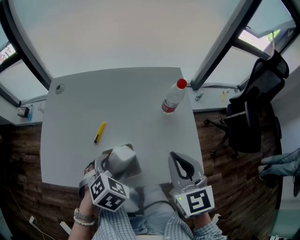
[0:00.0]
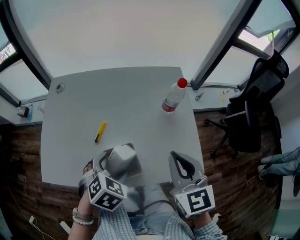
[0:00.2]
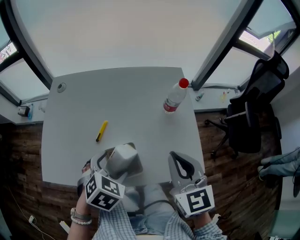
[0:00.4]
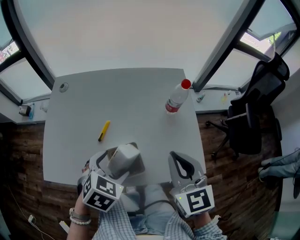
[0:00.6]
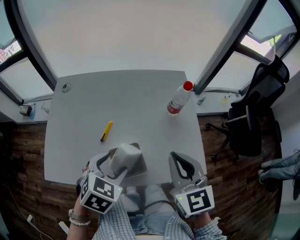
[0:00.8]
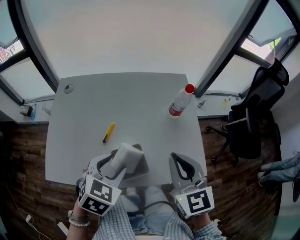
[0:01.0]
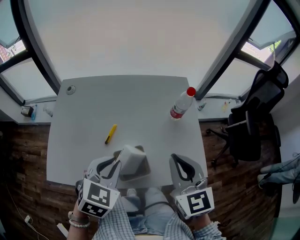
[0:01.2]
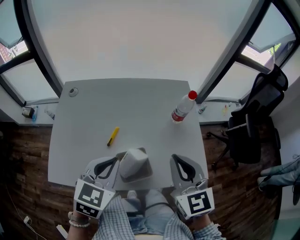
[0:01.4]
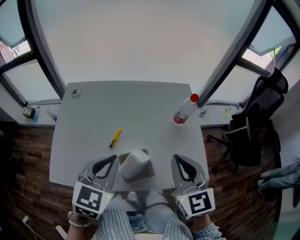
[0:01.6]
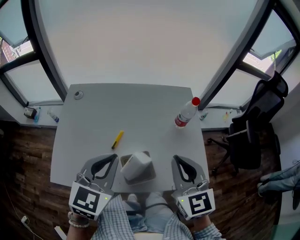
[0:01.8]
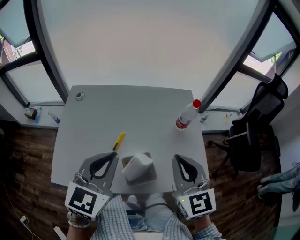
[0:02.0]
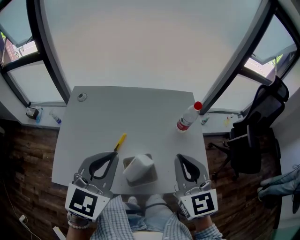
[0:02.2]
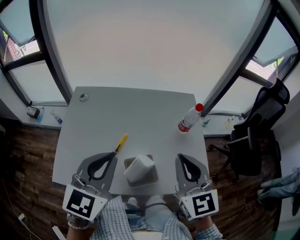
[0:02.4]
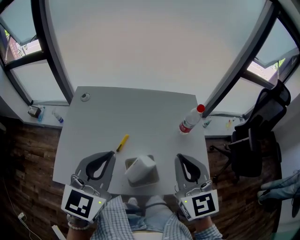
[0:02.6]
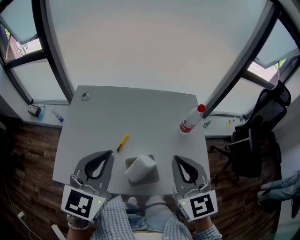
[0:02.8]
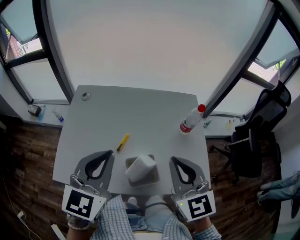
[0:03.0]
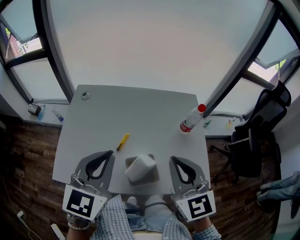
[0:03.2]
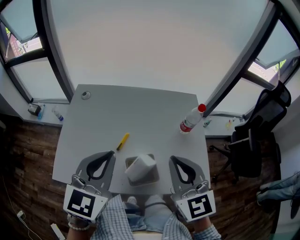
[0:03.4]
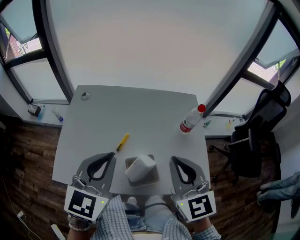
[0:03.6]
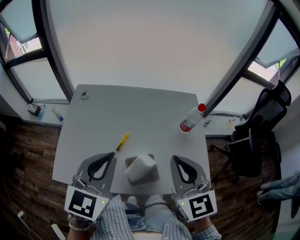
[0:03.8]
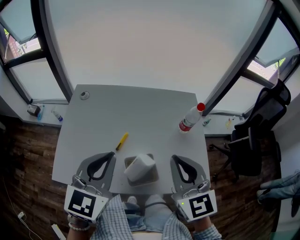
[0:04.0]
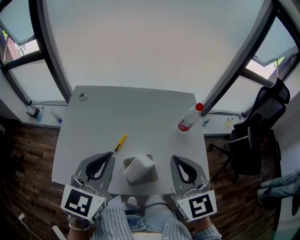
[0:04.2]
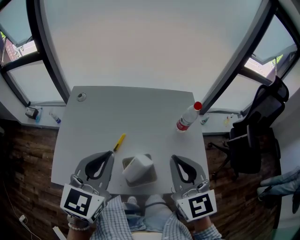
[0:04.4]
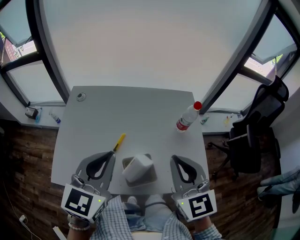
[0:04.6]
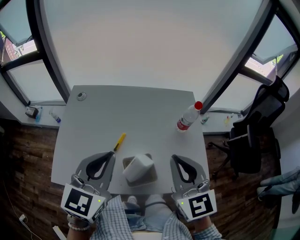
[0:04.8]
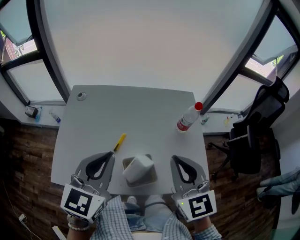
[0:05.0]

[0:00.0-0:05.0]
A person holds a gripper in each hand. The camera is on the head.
0:00.0 to 0:01.6: The left gripper goes approximately 15 cm upward and to the left, angles its fingers upward, by some 40 degrees, and closes. The right gripper moves some 5 cm.
0:01.6 to 0:03.4: The left gripper goes about 5 cm upward; the right gripper shifts by about 5 cm.
0:03.4 to 0:05.0: The grippers move only a little.

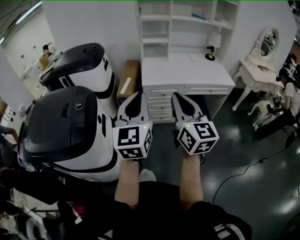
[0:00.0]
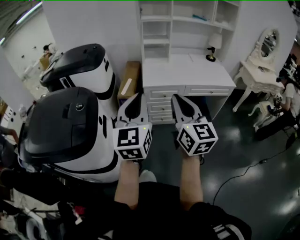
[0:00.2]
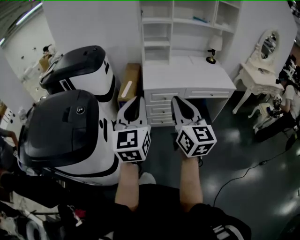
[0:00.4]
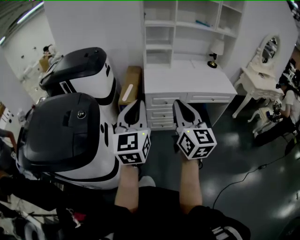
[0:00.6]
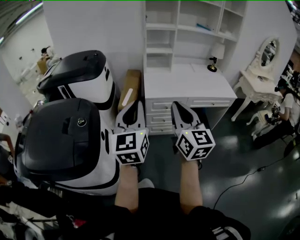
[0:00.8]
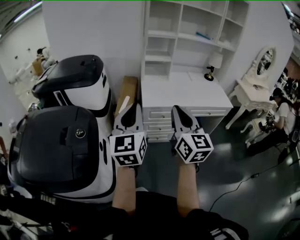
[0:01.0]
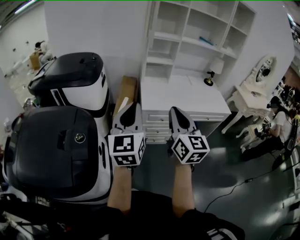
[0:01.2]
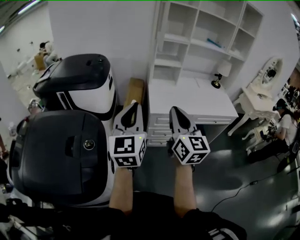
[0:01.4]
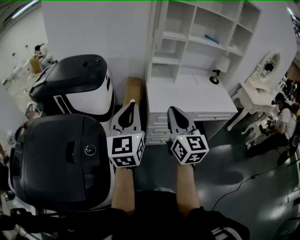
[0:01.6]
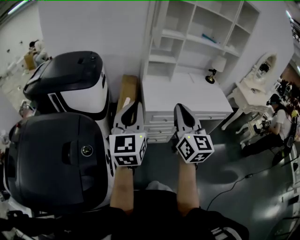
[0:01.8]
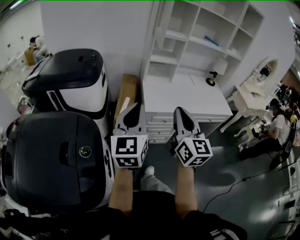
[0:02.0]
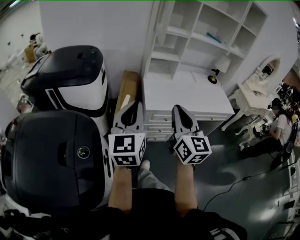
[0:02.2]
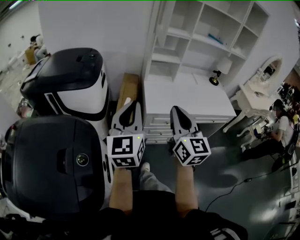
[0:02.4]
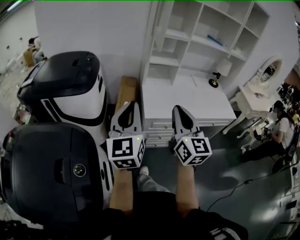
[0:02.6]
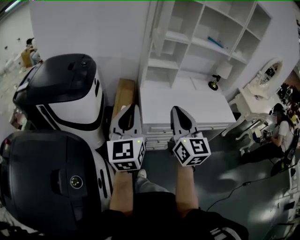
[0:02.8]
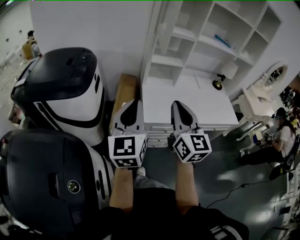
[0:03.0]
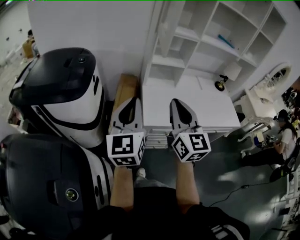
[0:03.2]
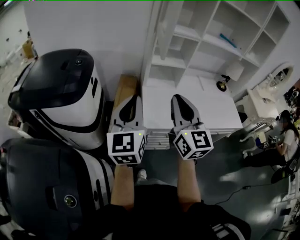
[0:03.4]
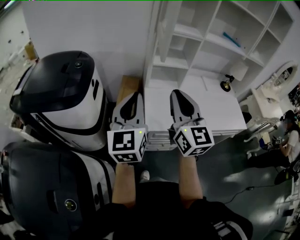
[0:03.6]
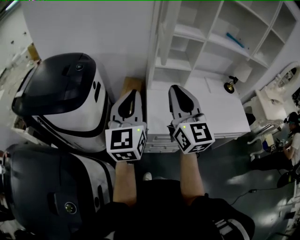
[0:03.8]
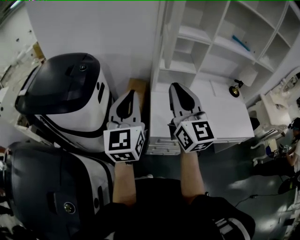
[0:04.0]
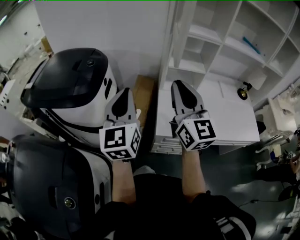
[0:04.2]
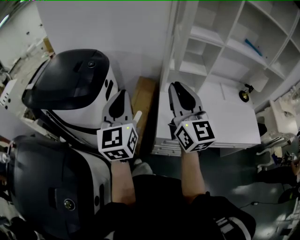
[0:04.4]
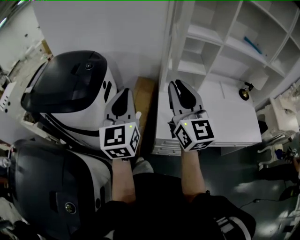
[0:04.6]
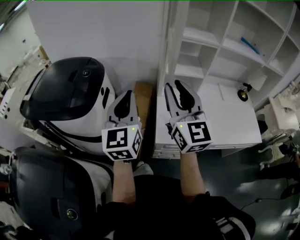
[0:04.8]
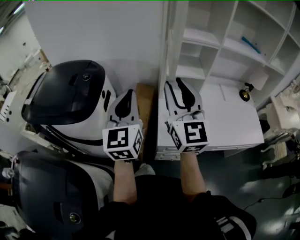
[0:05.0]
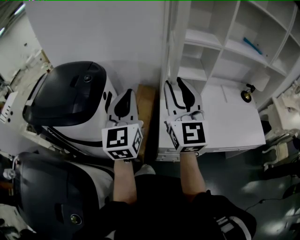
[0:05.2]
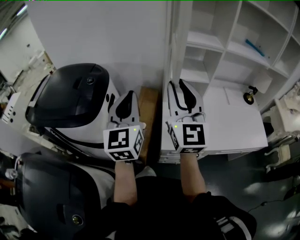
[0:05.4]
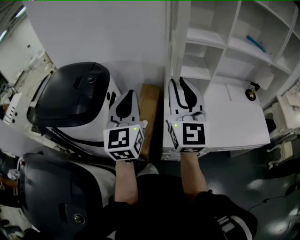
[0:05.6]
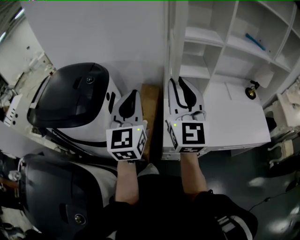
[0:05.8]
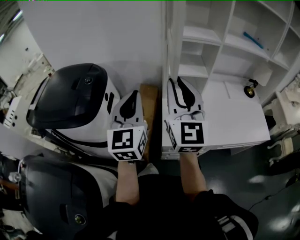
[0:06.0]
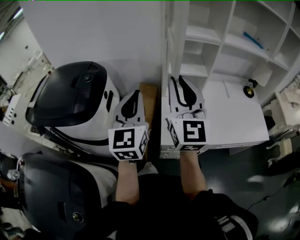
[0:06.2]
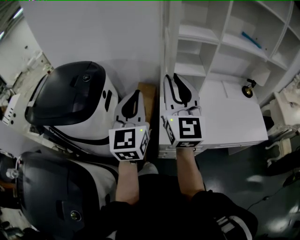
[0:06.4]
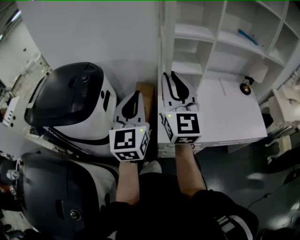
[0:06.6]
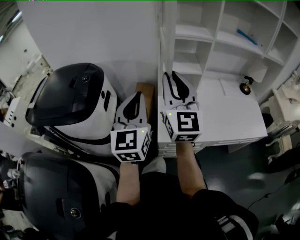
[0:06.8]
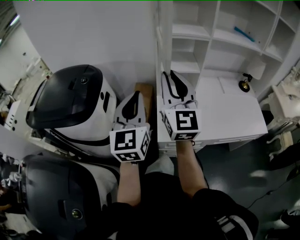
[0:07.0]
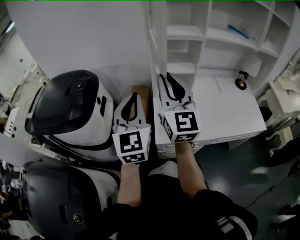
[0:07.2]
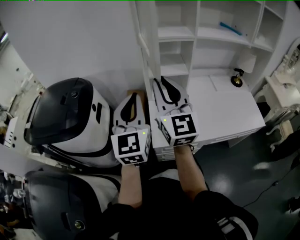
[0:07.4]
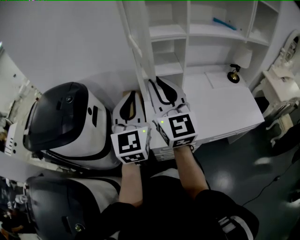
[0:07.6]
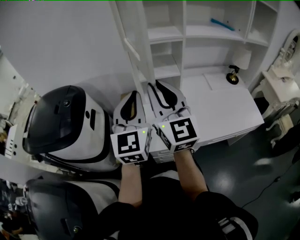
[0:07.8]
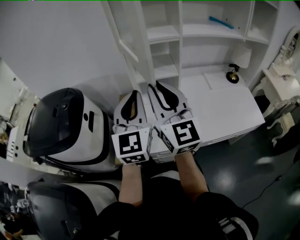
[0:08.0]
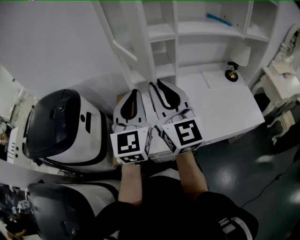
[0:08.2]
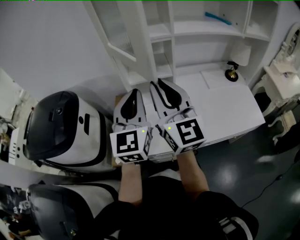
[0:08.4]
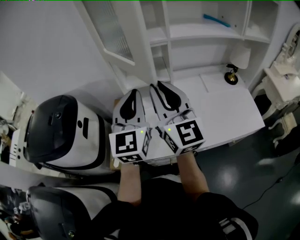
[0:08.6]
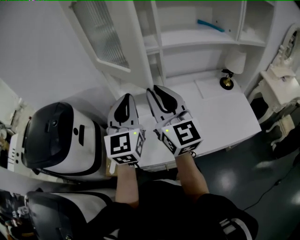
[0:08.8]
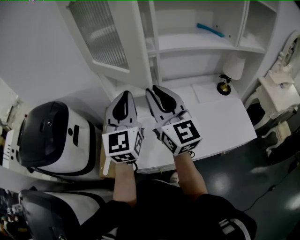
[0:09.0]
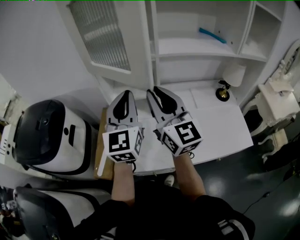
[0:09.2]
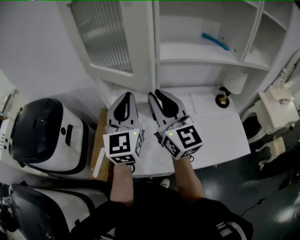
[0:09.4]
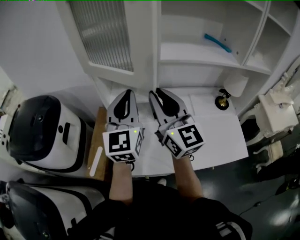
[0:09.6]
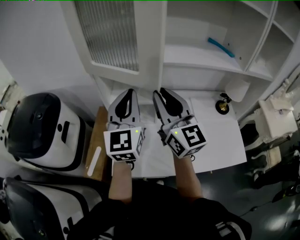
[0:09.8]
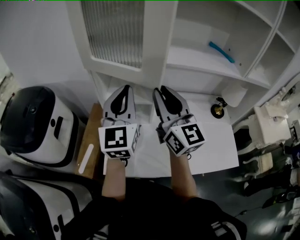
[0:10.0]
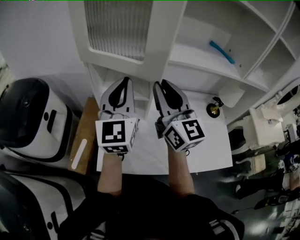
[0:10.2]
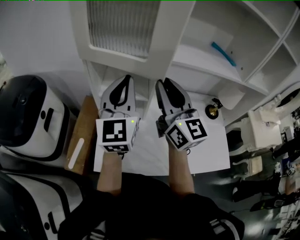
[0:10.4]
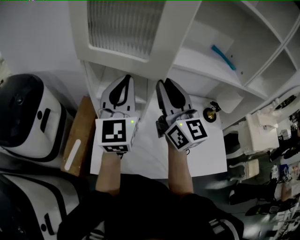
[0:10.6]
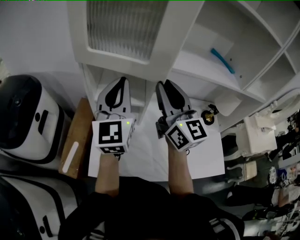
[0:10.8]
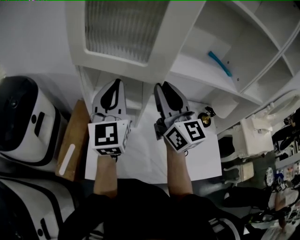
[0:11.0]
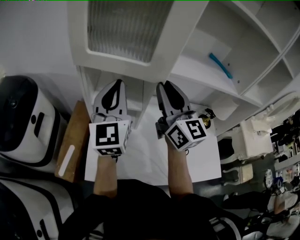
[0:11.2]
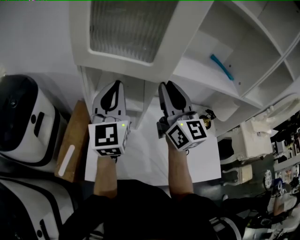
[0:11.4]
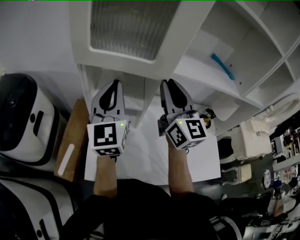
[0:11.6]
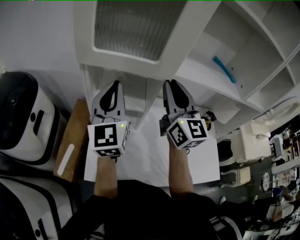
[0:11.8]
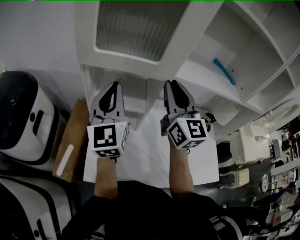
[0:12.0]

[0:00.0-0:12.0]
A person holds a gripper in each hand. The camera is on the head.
0:00.0 to 0:01.6: Both grippers travel together forward and to the left, approximately 25 cm.
0:01.6 to 0:03.0: Both grippers move forward, approximately 20 cm.
0:03.0 to 0:04.4: The grippers both shift forward by about 15 cm.
0:04.4 to 0:06.0: The right gripper shifts by approximately 5 cm, while the left gripper is displaced to the right and forward by approximately 10 cm.
0:06.0 to 0:07.6: The right gripper shifts about 5 cm to the right, while the left gripper shifts approximately 10 cm to the right.
0:07.6 to 0:09.0: The two grippers go approximately 20 cm to the right and forward.
0:09.0 to 0:10.4: The left gripper travels forward by roughly 10 cm. The right gripper moves forward and to the right, roughly 10 cm.
0:10.4 to 0:12.0: Both grippers move forward, approximately 5 cm.

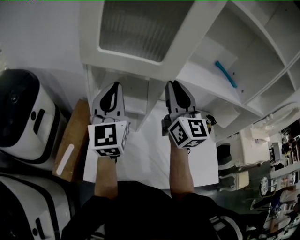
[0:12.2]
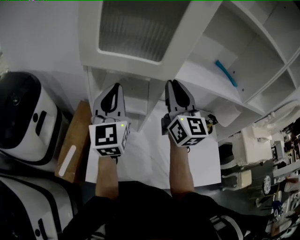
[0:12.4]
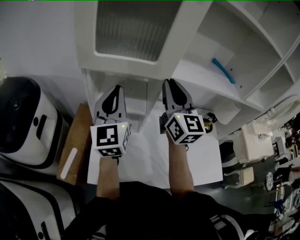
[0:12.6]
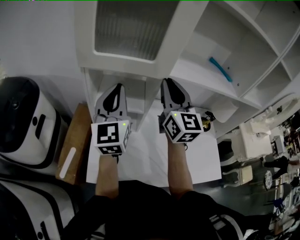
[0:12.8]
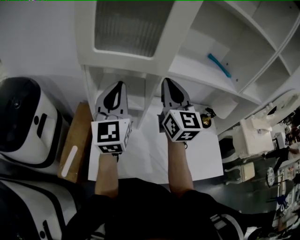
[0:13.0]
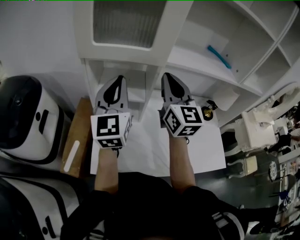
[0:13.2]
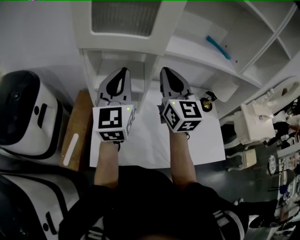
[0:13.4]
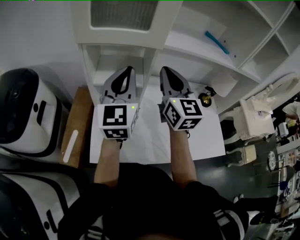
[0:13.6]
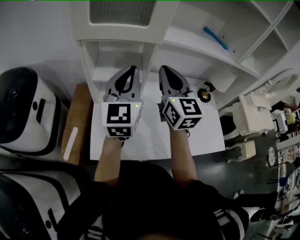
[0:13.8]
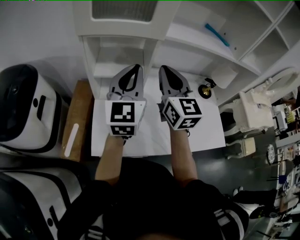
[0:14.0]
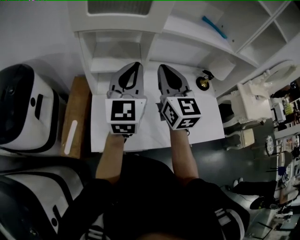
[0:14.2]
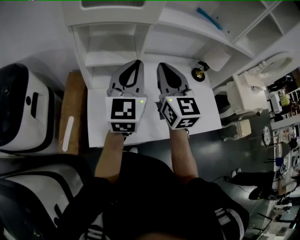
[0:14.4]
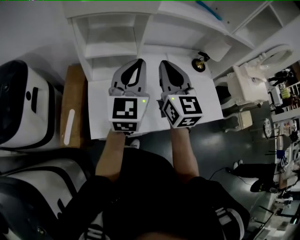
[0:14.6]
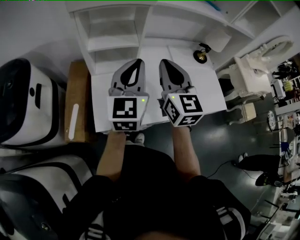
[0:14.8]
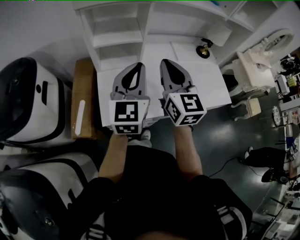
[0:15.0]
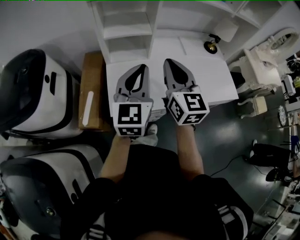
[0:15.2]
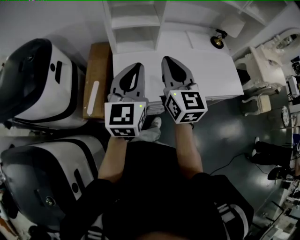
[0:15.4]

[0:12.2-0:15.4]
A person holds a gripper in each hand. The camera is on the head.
0:12.2 to 0:13.8: The right gripper shifts some 10 cm backward. Meanwhile the left gripper shifts some 10 cm backward and to the right.
0:13.8 to 0:15.4: Both grippers travel together backward, about 20 cm.

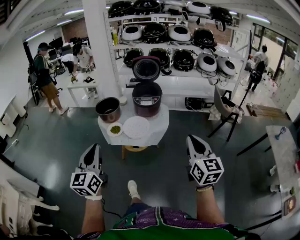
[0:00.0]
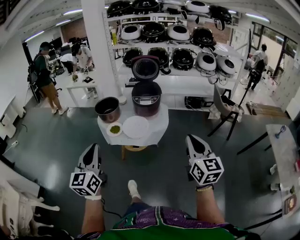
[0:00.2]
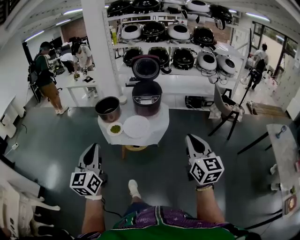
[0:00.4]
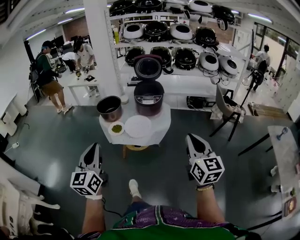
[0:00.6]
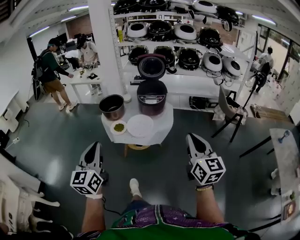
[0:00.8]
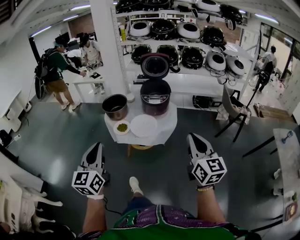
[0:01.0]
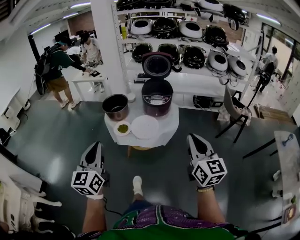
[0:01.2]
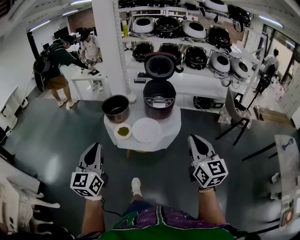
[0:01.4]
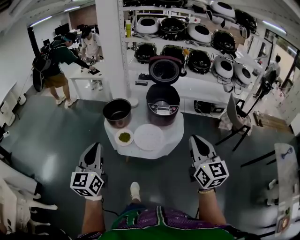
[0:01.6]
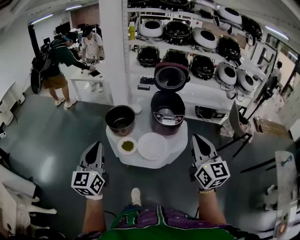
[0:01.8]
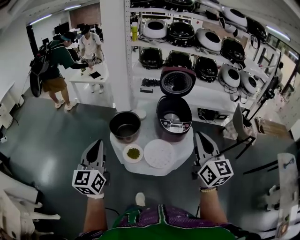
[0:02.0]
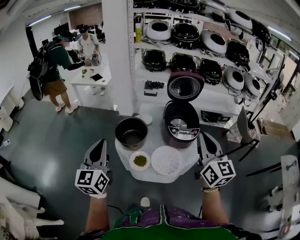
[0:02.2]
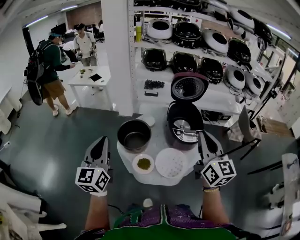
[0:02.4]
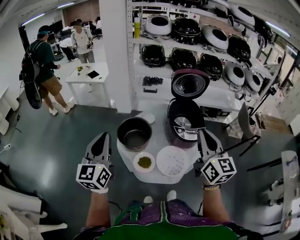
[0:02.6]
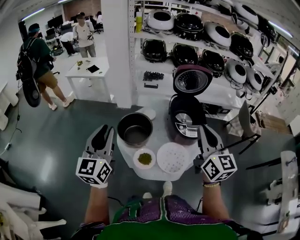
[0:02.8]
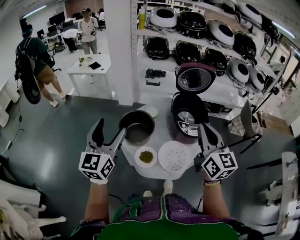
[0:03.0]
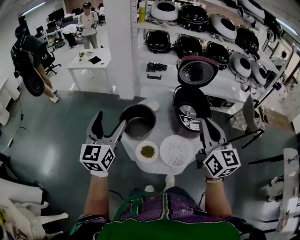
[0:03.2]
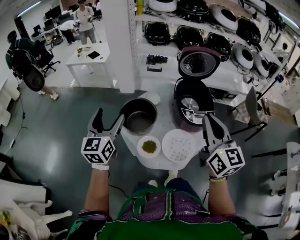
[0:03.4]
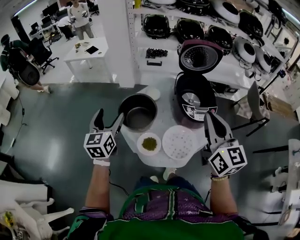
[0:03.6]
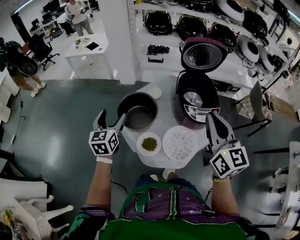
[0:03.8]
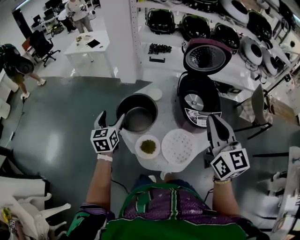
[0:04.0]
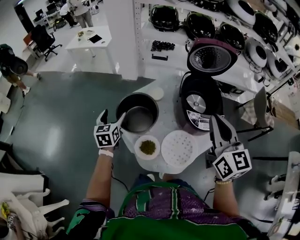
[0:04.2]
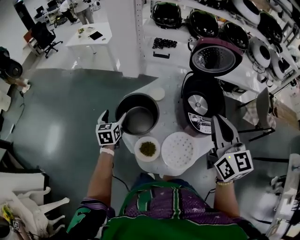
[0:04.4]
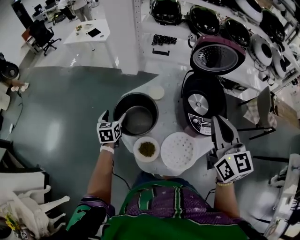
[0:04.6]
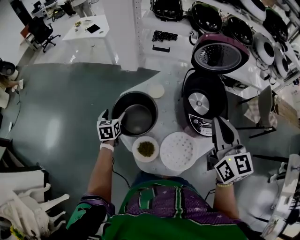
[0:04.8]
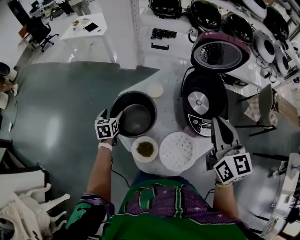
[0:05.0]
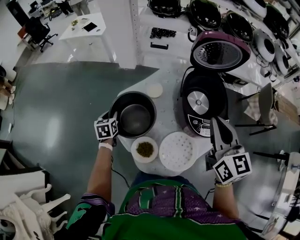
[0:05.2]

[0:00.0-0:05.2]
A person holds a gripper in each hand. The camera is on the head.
0:00.0 to 0:01.8: The grippers both shift forward and to the left by some 25 cm.
0:01.8 to 0:03.4: Both grippers move forward and to the left, roughly 25 cm. The left gripper opens its fingers.
0:03.4 to 0:05.2: The right gripper moves forward and downward, about 20 cm, while the left gripper heads downward and forward, covering about 35 cm, angles its fingers downward, by approximately 40 degrees, and closes.
